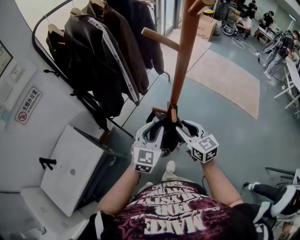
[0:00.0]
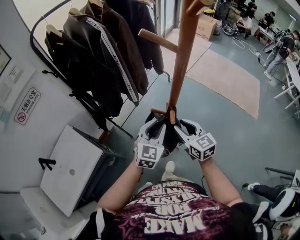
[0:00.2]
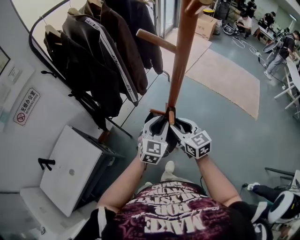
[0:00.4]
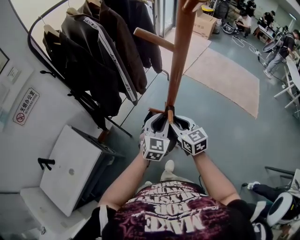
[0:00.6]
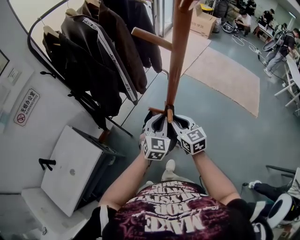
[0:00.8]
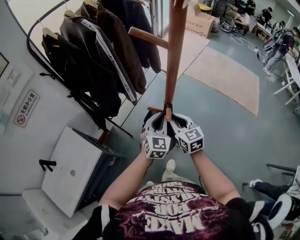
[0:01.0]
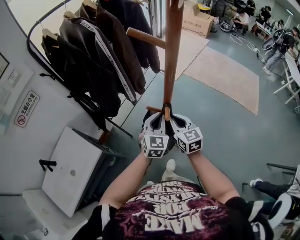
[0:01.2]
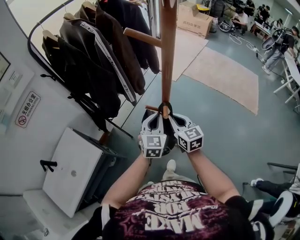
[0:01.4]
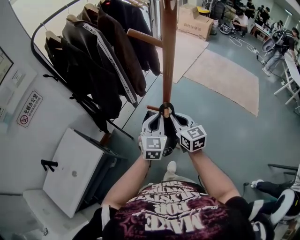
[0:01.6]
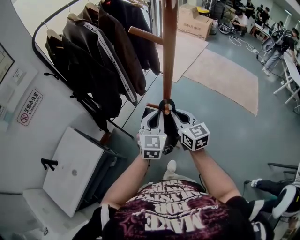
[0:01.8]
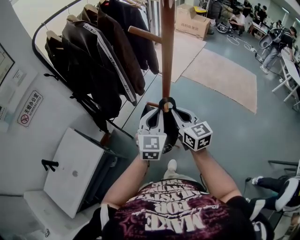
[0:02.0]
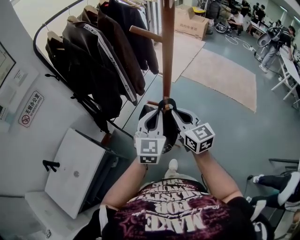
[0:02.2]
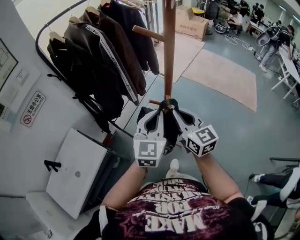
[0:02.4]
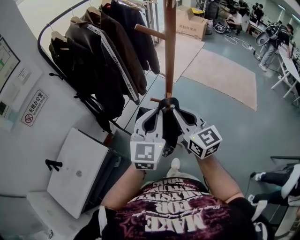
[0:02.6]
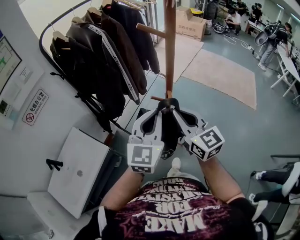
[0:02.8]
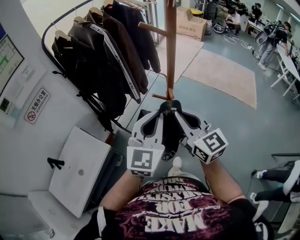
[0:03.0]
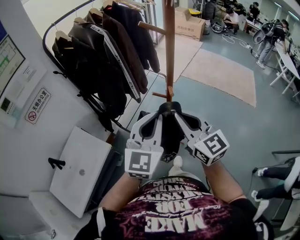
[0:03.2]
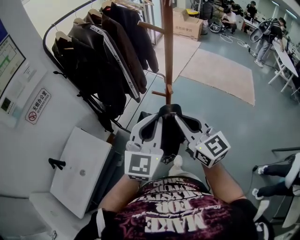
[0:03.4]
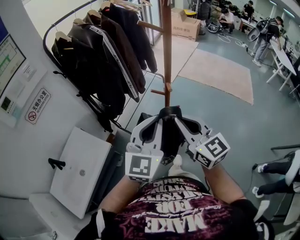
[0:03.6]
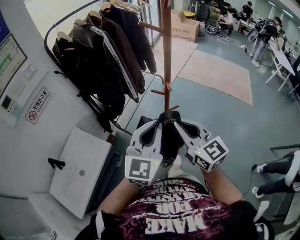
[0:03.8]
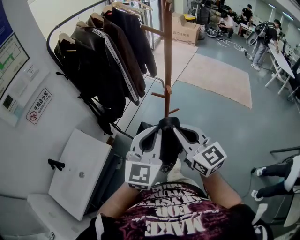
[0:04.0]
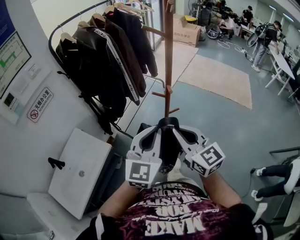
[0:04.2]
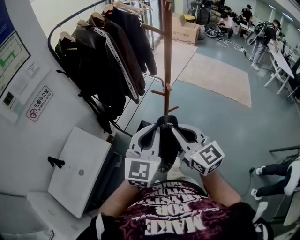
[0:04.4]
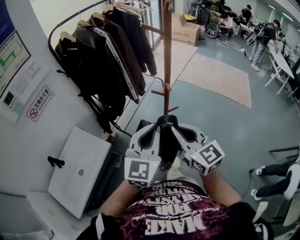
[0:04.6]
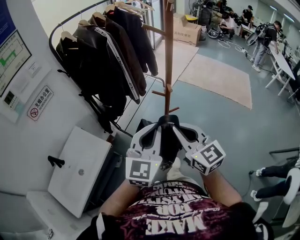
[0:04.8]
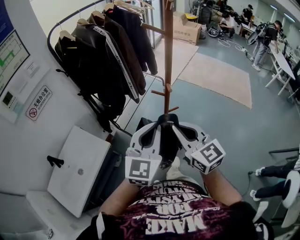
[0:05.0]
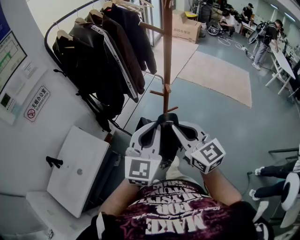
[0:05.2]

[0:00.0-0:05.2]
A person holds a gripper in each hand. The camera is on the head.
0:00.0 to 0:01.8: The left gripper closes its fingers. Meanwhile the right gripper closes.
0:01.8 to 0:03.4: Both grippers move backward and upward, roughly 20 cm.

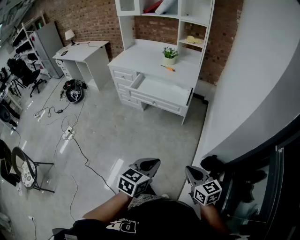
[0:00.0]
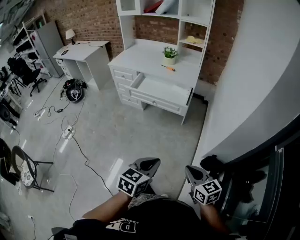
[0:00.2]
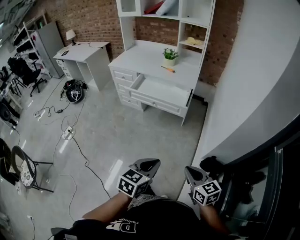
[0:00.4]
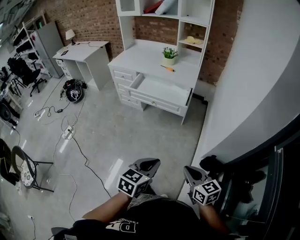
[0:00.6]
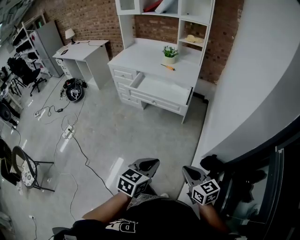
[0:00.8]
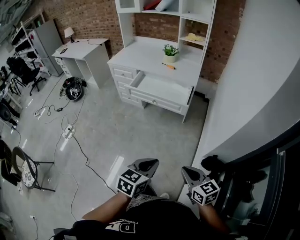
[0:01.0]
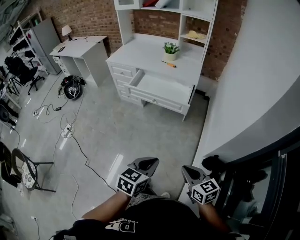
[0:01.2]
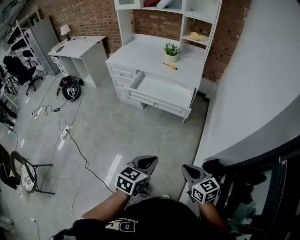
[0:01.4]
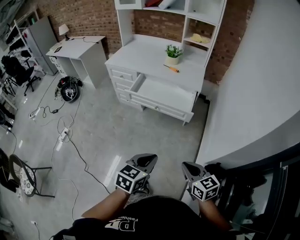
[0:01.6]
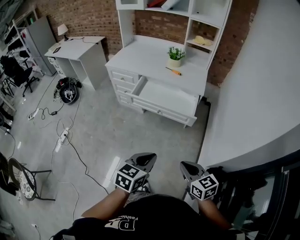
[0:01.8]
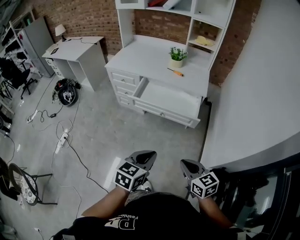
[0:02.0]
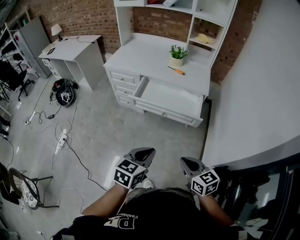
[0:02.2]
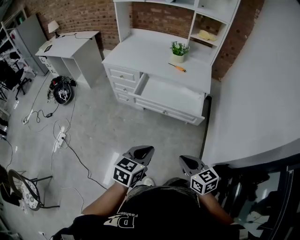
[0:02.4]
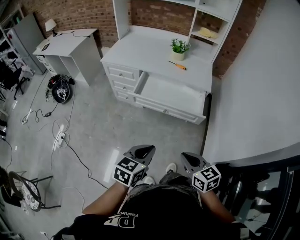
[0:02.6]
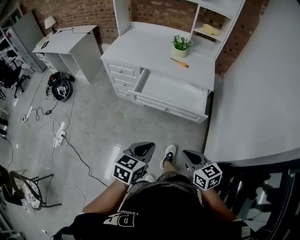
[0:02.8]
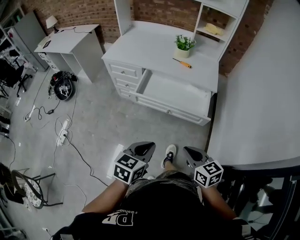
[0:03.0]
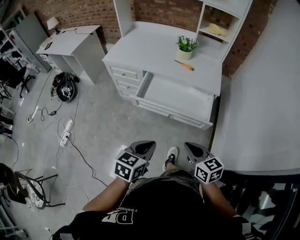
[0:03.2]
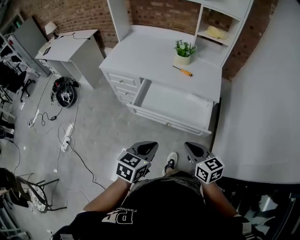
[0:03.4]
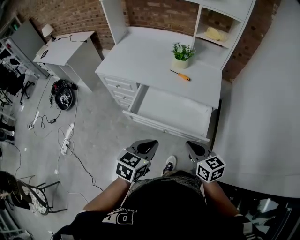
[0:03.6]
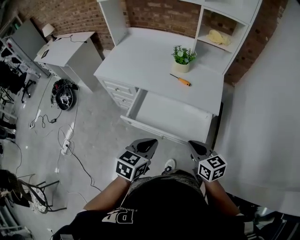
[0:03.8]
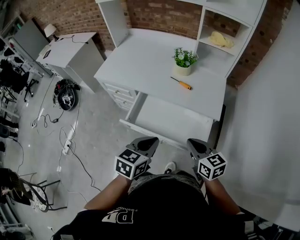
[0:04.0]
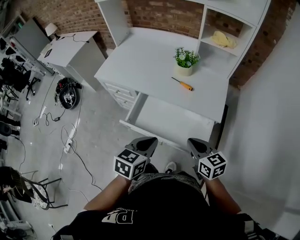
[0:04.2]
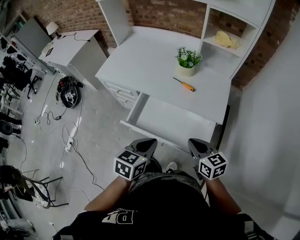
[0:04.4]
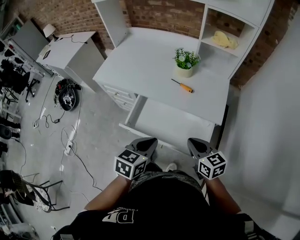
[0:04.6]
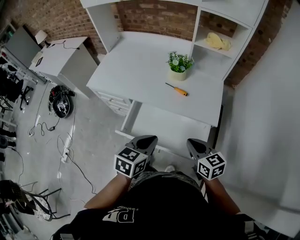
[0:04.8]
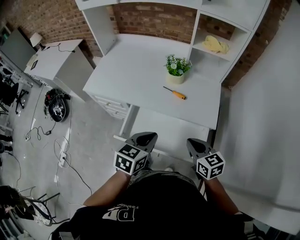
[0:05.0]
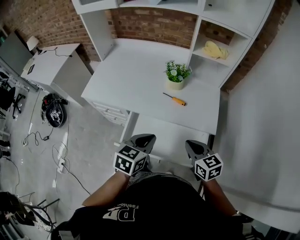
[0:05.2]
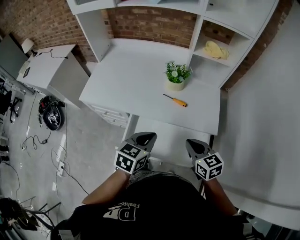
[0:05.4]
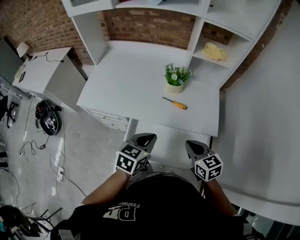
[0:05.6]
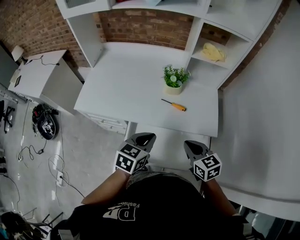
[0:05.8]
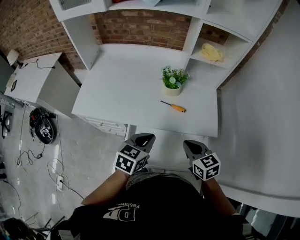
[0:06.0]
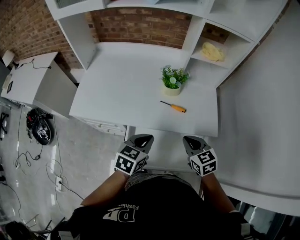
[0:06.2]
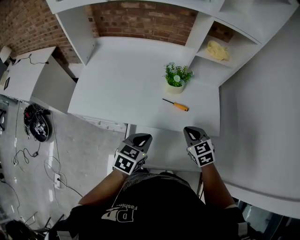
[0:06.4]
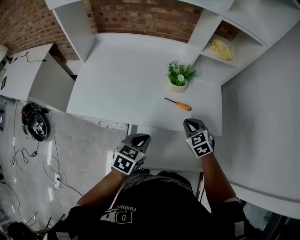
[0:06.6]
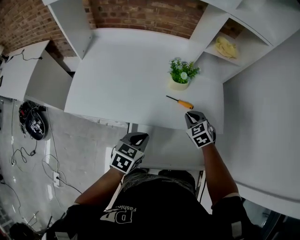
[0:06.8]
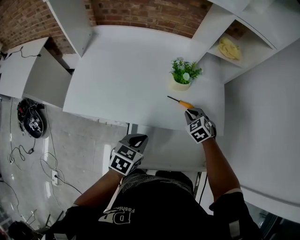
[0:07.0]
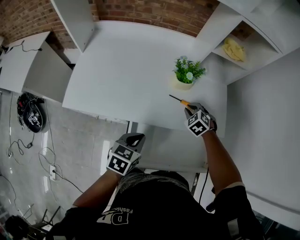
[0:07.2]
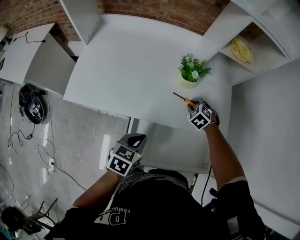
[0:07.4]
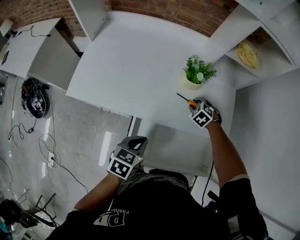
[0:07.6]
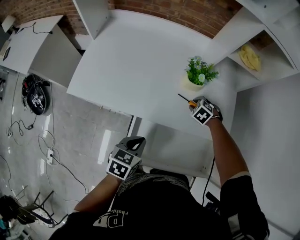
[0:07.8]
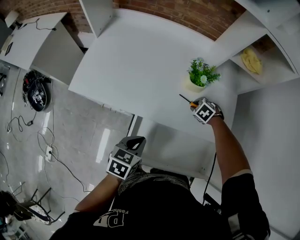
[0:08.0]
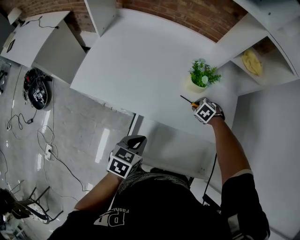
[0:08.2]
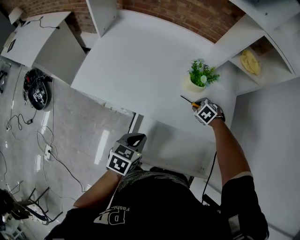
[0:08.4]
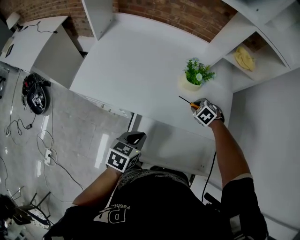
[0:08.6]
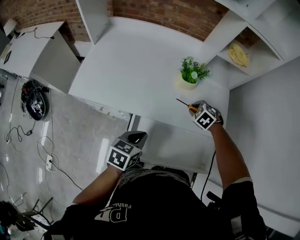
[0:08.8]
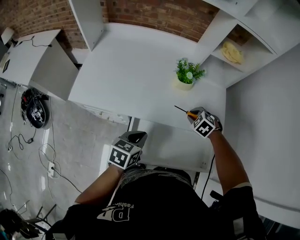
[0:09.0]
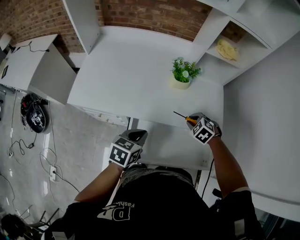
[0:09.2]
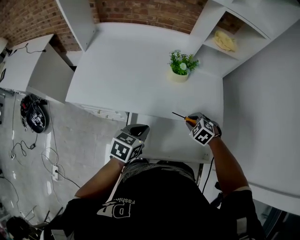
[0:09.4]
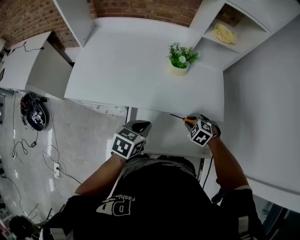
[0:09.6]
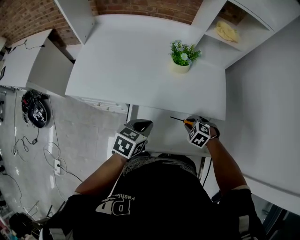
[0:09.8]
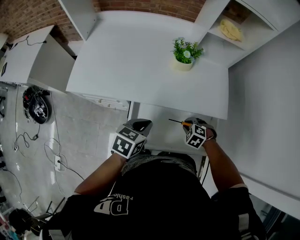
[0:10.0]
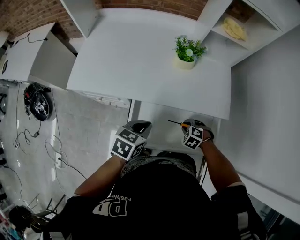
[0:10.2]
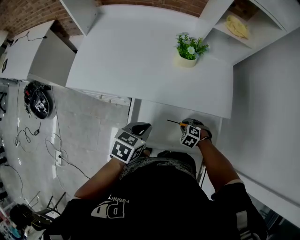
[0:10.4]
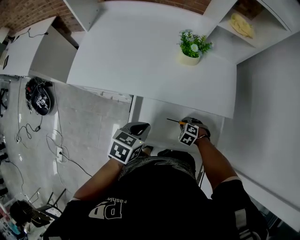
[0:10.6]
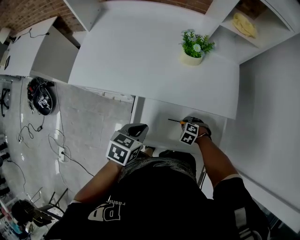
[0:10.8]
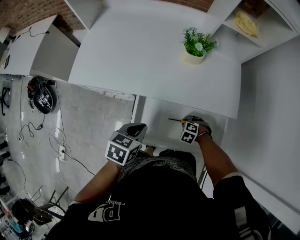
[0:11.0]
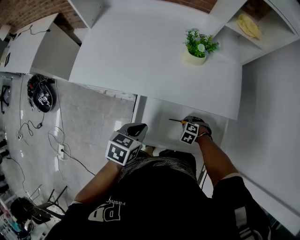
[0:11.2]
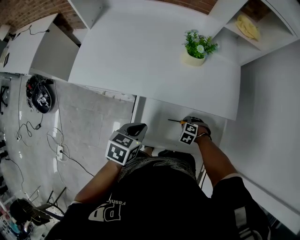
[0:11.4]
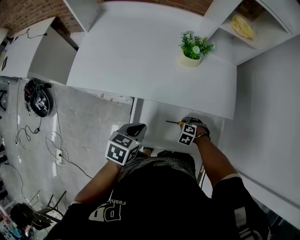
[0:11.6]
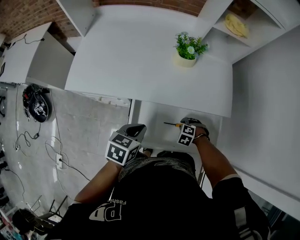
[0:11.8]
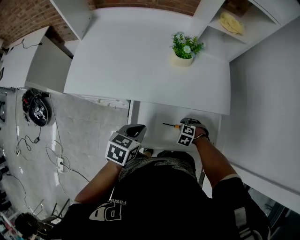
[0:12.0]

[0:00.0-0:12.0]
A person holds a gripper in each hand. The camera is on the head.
0:00.0 to 0:01.6: Both grippers travel together forward and to the left, approximately 15 cm.
0:01.6 to 0:03.0: The two grippers go roughly 20 cm forward and to the left.
0:03.0 to 0:04.4: Both grippers travel together forward, approximately 30 cm.
0:04.4 to 0:06.0: The right gripper is displaced forward and to the left by approximately 15 cm; the left gripper heads forward, covering about 20 cm.
0:06.0 to 0:07.6: The left gripper shifts some 15 cm downward and to the left. Meanwhile the right gripper heads forward and downward, covering roughly 30 cm, points its fingers approximately 40 degrees further downward, and opens up.
0:07.6 to 0:09.0: The right gripper ends up about 10 cm from where it was.
0:09.0 to 0:10.4: The right gripper ends up roughly 20 cm from where it was. The left gripper ends up roughly 5 cm from where it was.
0:10.4 to 0:12.0: There are only small adjustments of the grippers.

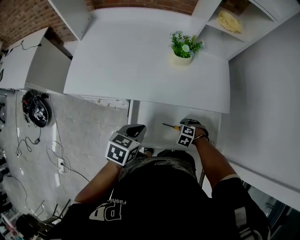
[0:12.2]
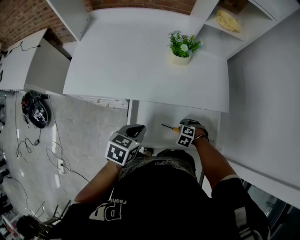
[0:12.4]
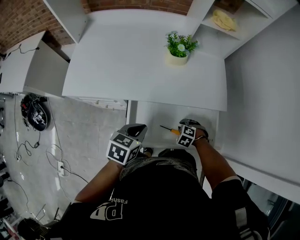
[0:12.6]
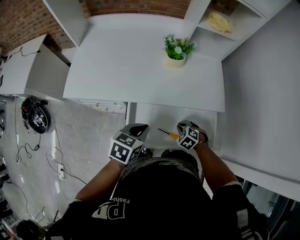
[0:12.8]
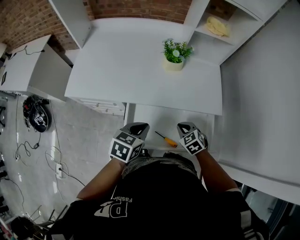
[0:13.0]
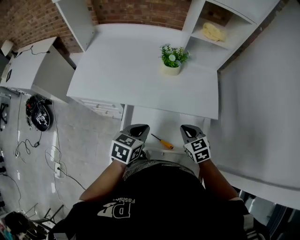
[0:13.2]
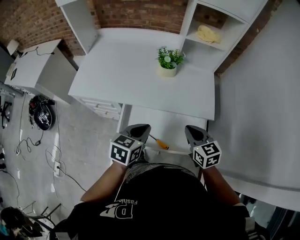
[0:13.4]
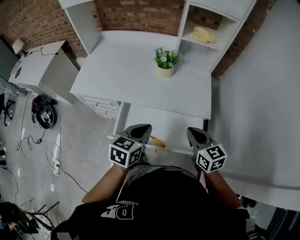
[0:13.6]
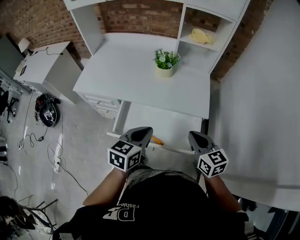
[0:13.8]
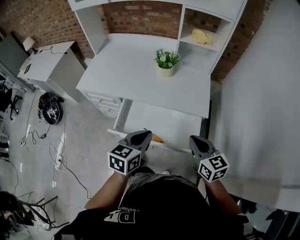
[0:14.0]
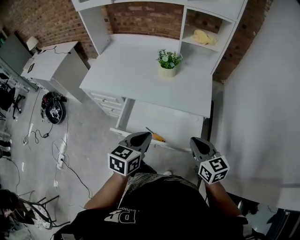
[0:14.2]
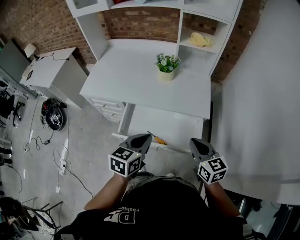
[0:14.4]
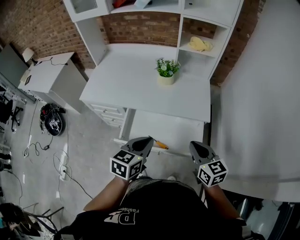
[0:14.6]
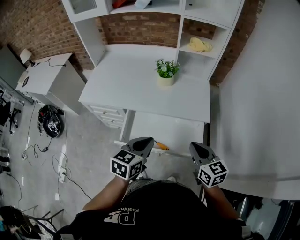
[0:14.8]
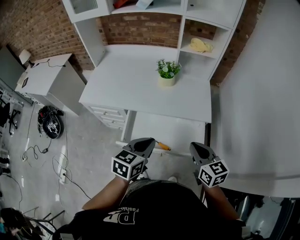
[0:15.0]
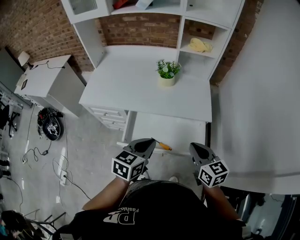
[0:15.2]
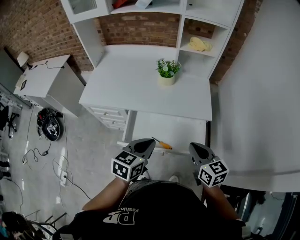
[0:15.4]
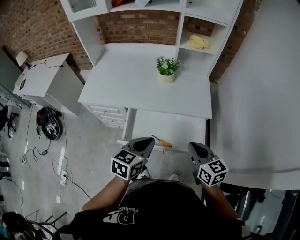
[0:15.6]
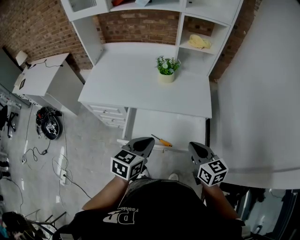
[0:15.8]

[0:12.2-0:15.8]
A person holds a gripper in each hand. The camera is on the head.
0:12.2 to 0:14.0: The left gripper changes place by approximately 25 cm, and rotates roughly 20 degrees; the right gripper shifts approximately 35 cm upward, and angles its fingers upward, by some 60 degrees.
0:14.0 to 0:15.8: Both grippers travel together to the left, approximately 5 cm.

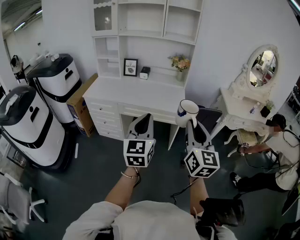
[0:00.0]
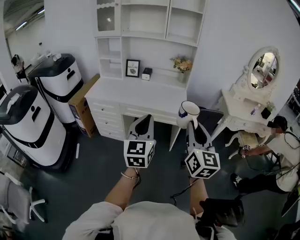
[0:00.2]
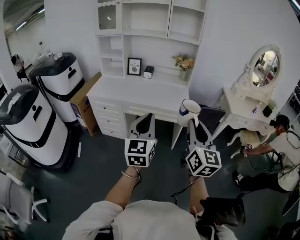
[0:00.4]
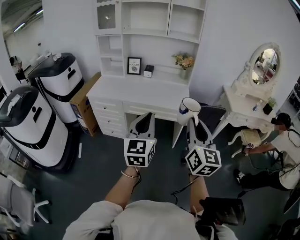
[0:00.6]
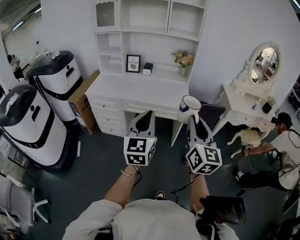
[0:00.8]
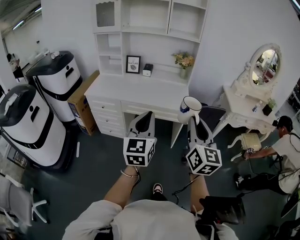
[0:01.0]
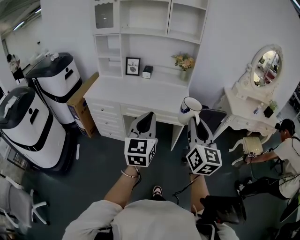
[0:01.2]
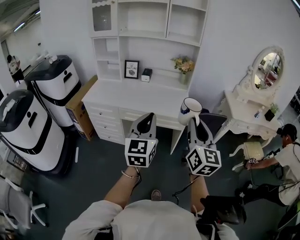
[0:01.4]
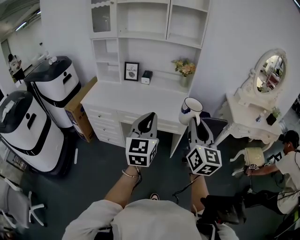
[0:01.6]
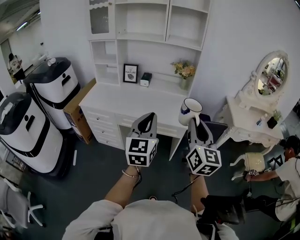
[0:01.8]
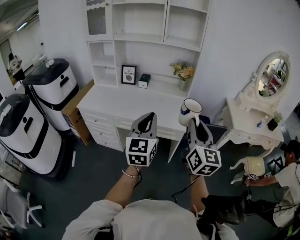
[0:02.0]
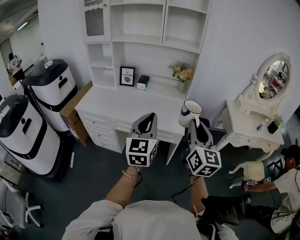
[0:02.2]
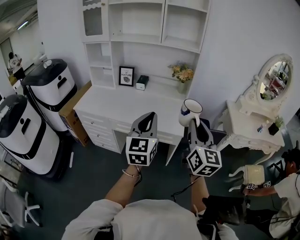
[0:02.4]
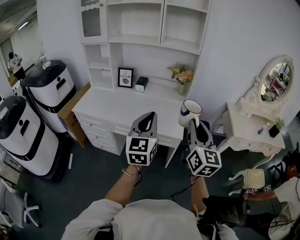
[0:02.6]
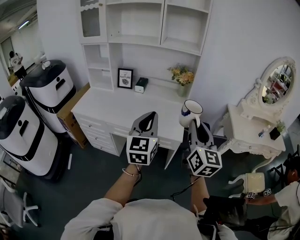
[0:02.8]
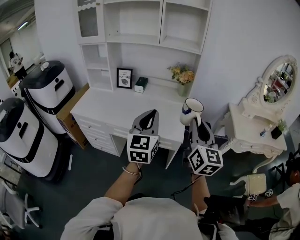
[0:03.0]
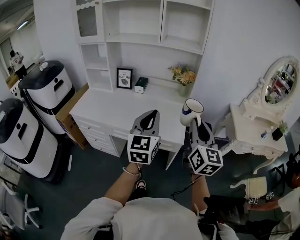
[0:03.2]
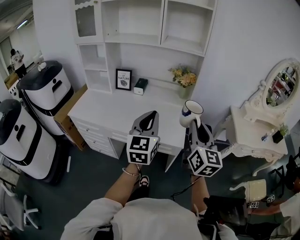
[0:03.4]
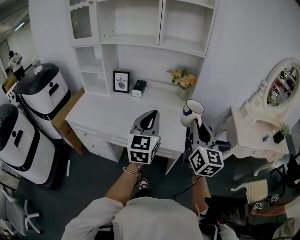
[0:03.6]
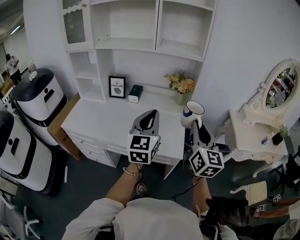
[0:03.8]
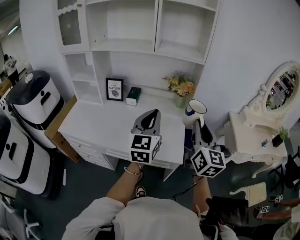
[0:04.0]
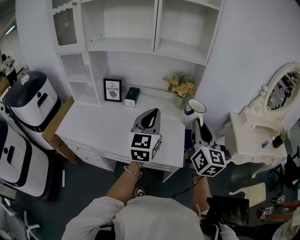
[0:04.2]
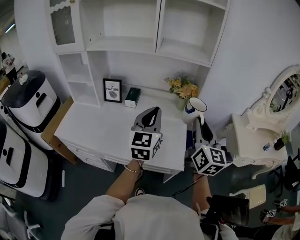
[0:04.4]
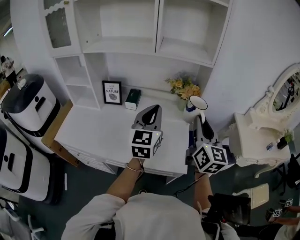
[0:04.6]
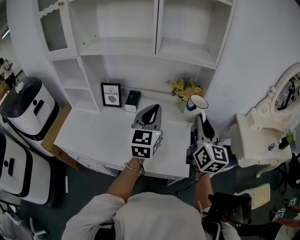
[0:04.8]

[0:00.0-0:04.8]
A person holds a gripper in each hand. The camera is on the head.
0:00.0 to 0:01.6: Both grippers travel together forward, about 10 cm.
0:01.6 to 0:03.2: The grippers both shift forward by approximately 20 cm.
0:03.2 to 0:04.8: Both grippers travel together forward, some 30 cm.
